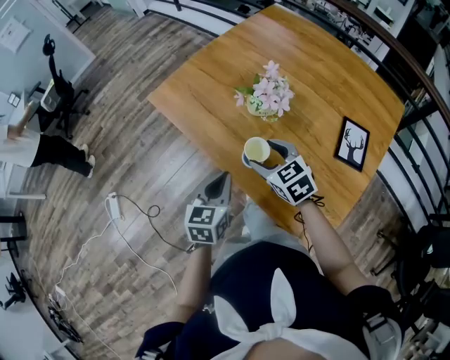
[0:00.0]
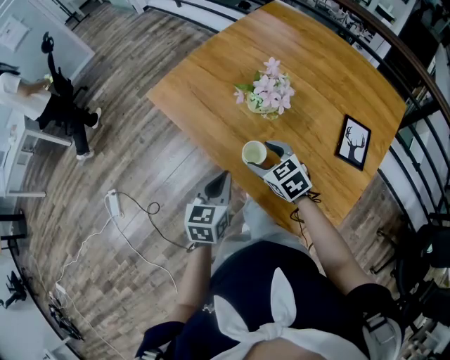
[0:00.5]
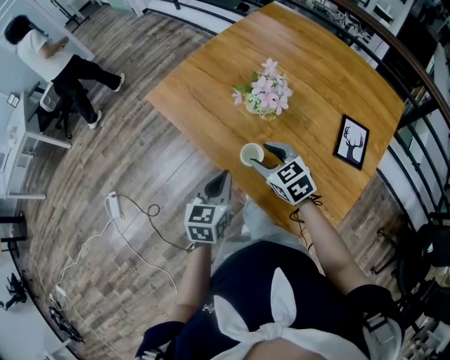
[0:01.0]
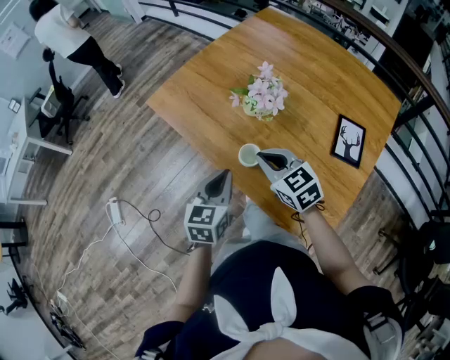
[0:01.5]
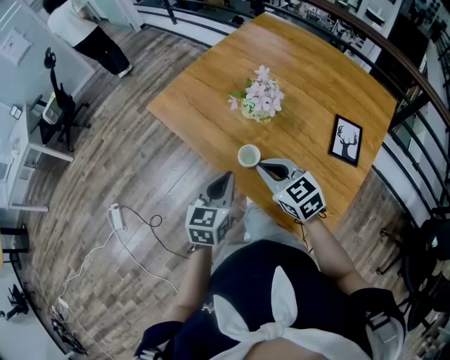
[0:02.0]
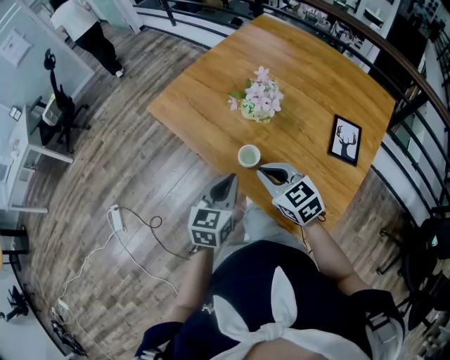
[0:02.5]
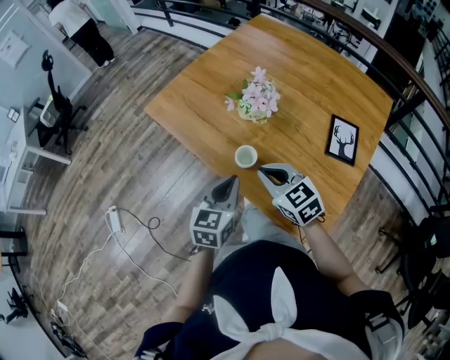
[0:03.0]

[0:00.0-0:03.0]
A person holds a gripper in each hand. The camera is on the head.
0:00.0 to 0:01.5: The right gripper closes.
0:01.5 to 0:03.0: The grippers make only small movements.

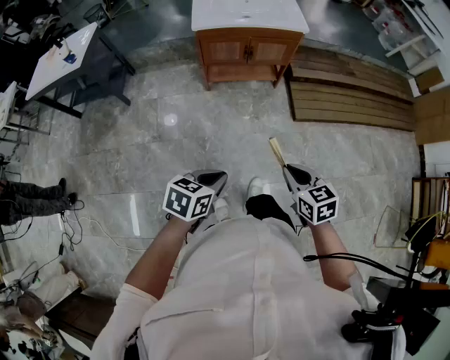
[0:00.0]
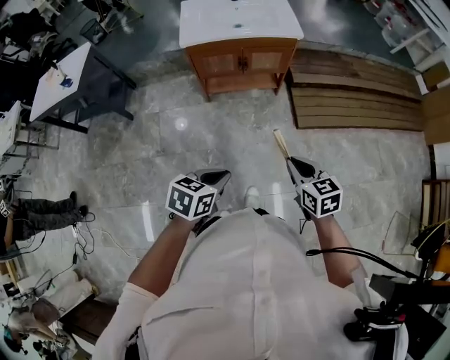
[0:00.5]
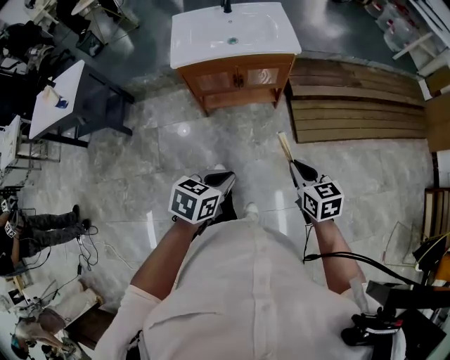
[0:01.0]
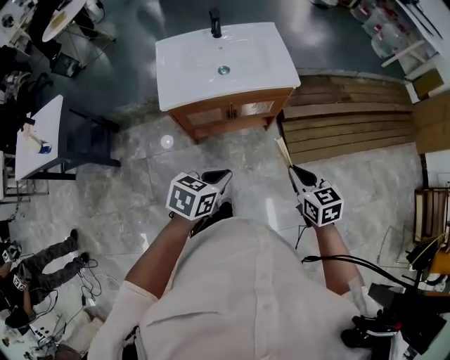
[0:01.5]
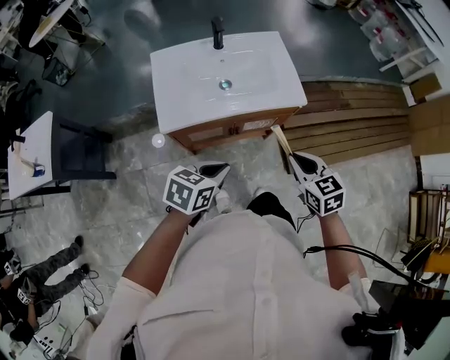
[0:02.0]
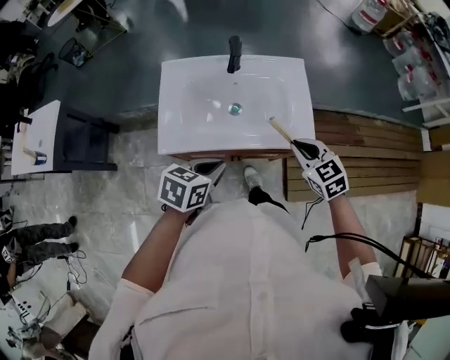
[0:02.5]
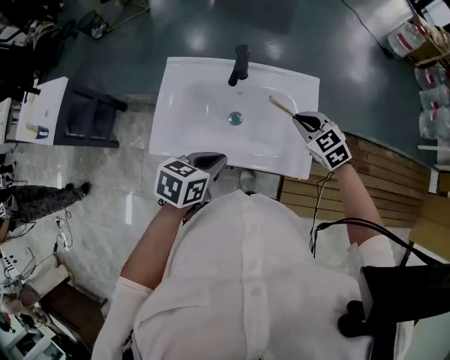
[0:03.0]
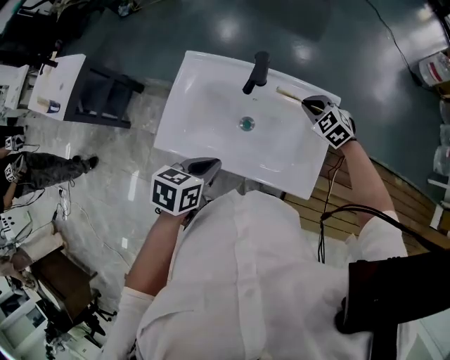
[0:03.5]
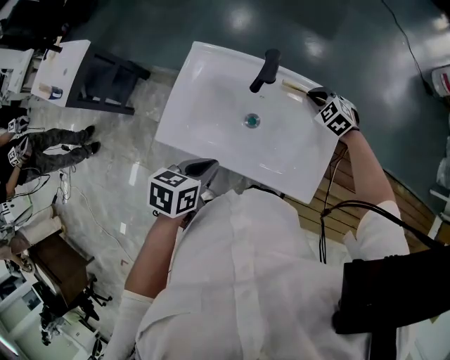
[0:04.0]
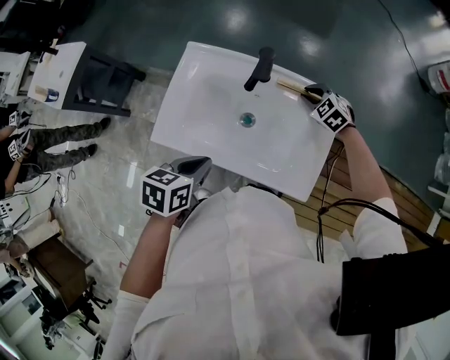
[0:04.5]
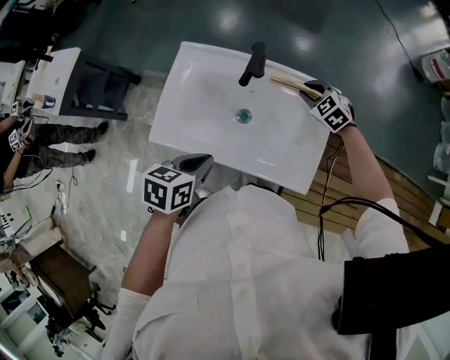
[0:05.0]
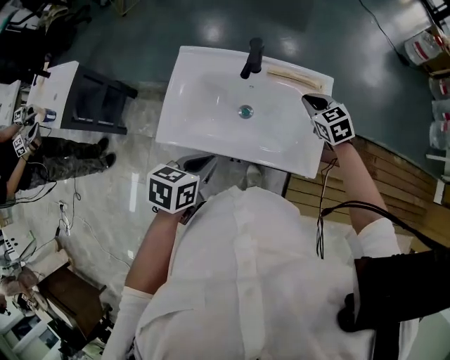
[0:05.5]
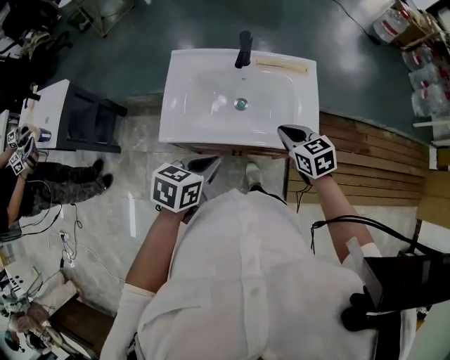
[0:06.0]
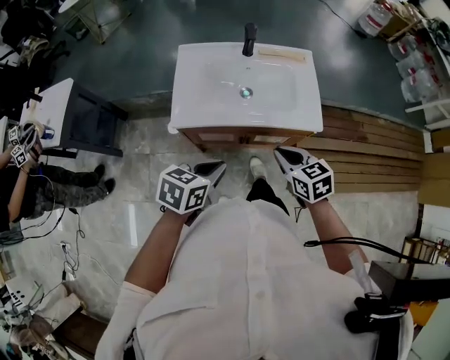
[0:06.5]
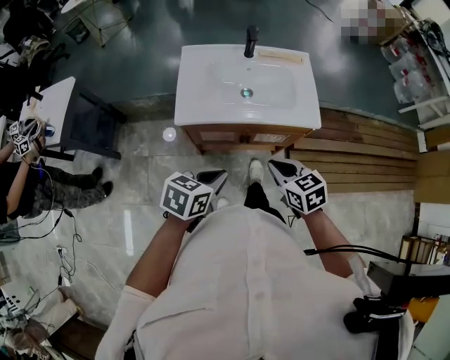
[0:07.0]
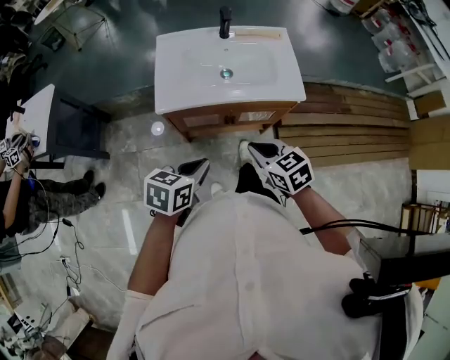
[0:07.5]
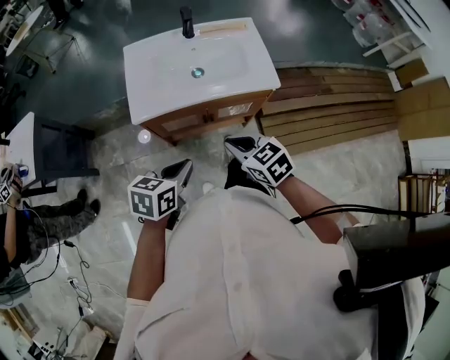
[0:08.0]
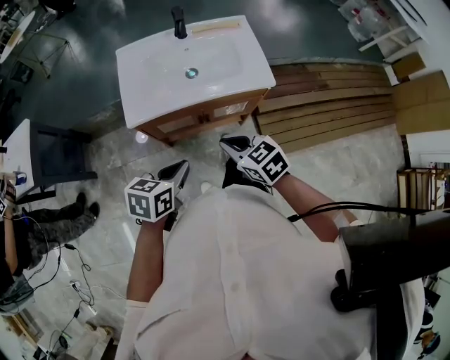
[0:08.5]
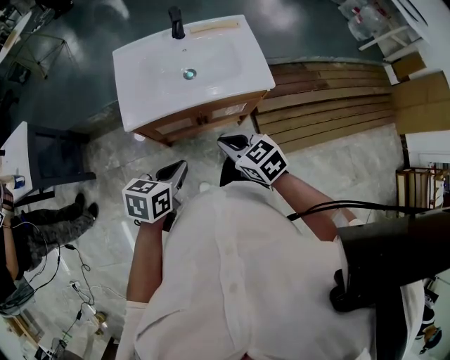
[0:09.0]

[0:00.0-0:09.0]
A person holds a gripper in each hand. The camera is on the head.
0:00.0 to 0:02.0: The pair of grippers is taken forward, roughly 50 cm.
0:02.0 to 0:04.5: The right gripper moves roughly 60 cm, and twists roughly 50 degrees counterclockwise, seen from behind. The left gripper ends up approximately 25 cm from where it was, and turns by roughly 40 degrees.
0:04.5 to 0:07.0: The left gripper heads backward, covering roughly 25 cm, and rotates roughly 30 degrees, while the right gripper is displaced backward by approximately 50 cm, and twists roughly 50 degrees clockwise, seen from behind.
0:07.0 to 0:09.0: The grippers make only small movements.

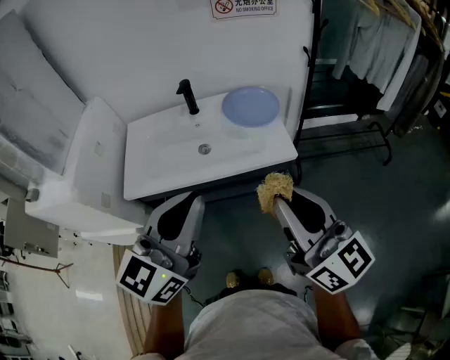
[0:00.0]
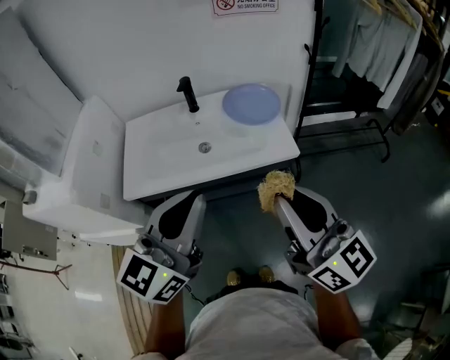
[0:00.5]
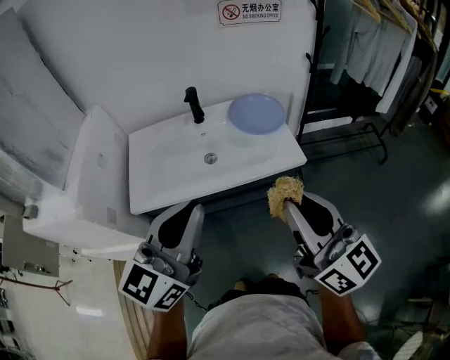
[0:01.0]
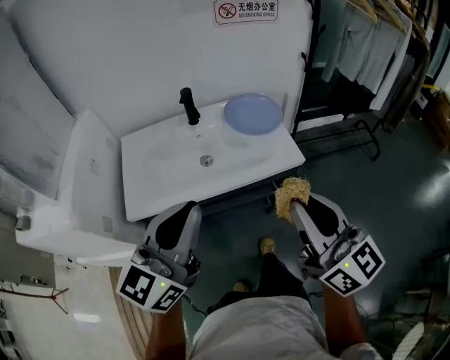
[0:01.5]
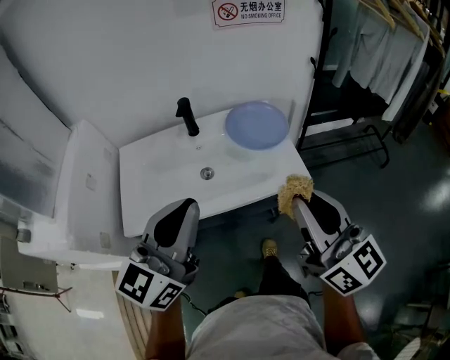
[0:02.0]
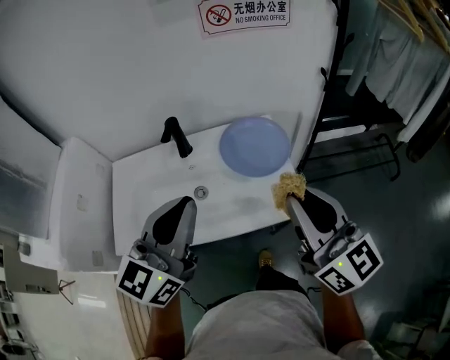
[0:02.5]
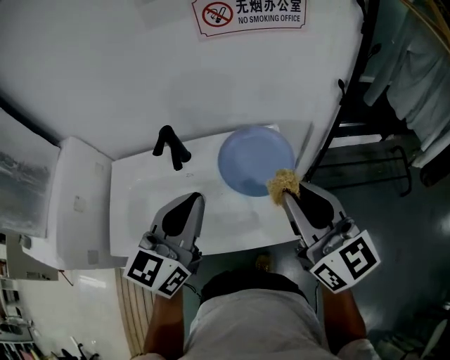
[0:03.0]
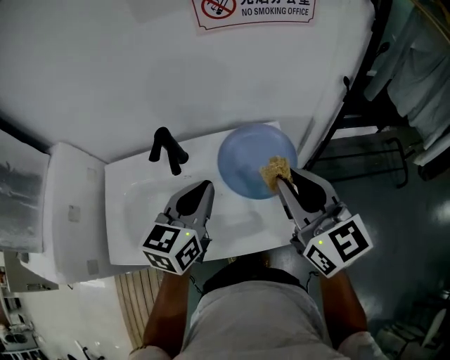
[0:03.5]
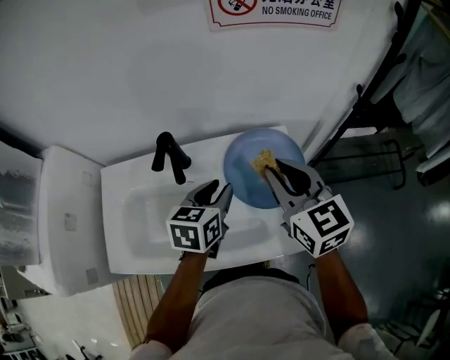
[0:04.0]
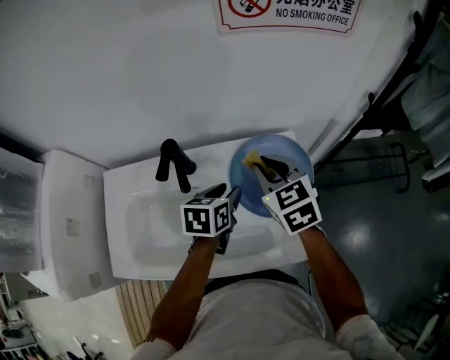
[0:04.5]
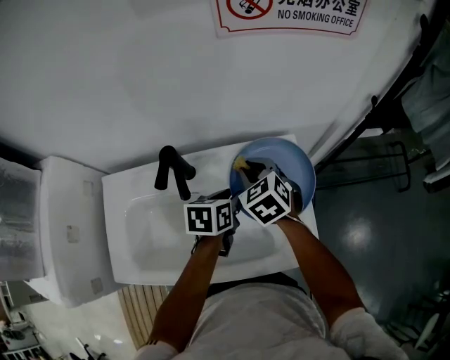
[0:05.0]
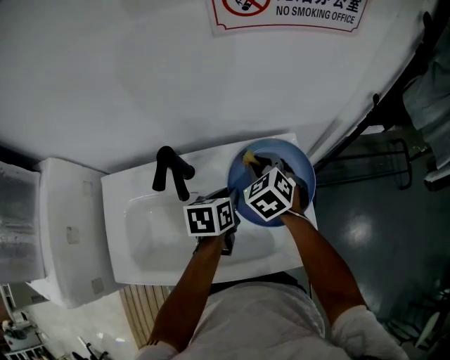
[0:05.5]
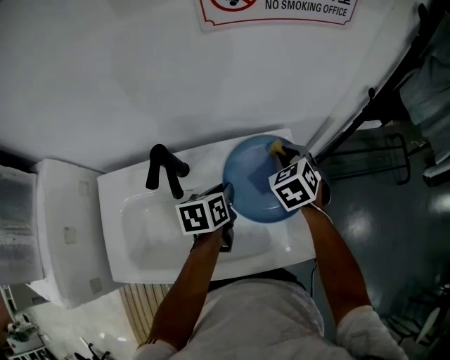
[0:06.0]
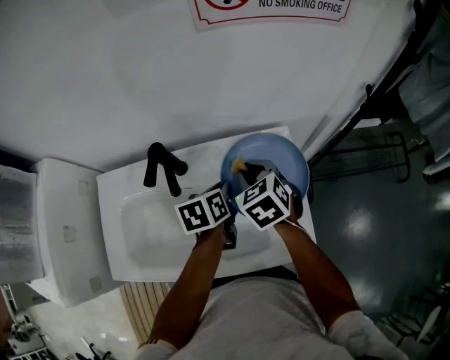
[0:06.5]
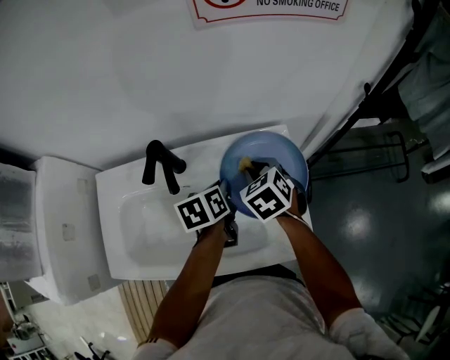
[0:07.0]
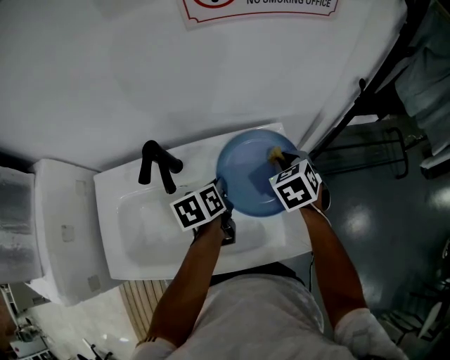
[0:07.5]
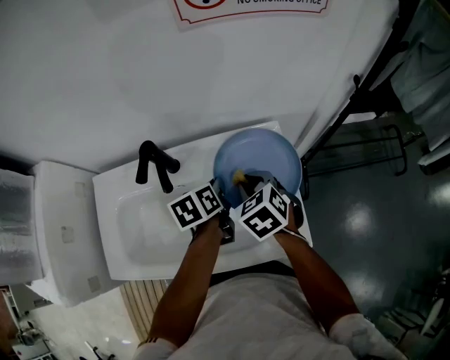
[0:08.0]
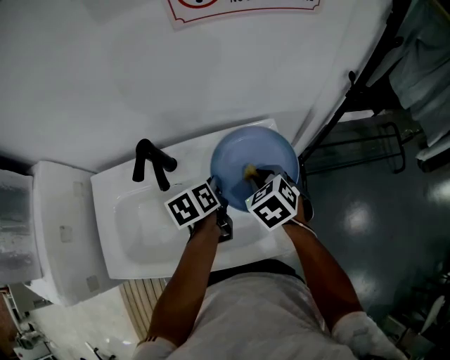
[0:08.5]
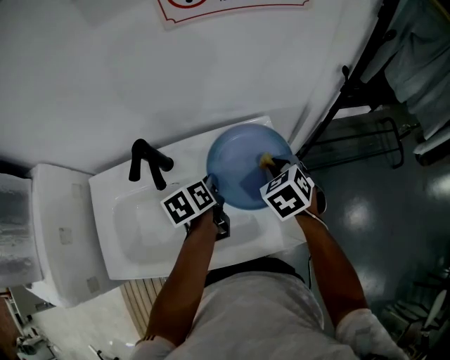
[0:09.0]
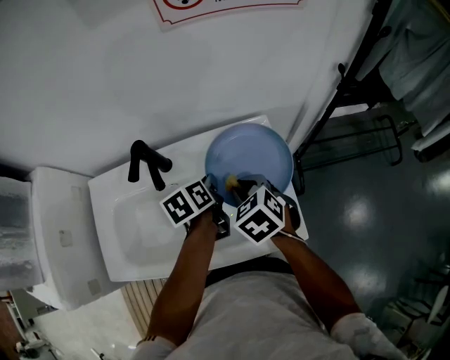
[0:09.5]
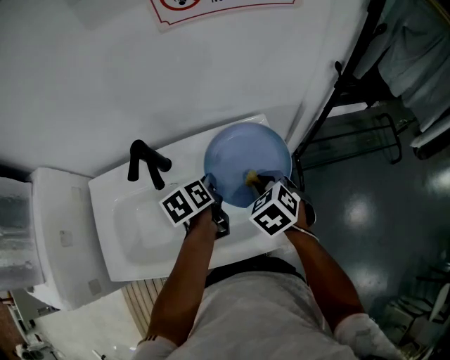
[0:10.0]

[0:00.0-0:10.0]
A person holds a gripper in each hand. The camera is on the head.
0:00.0 to 0:02.0: The right gripper goes about 10 cm forward. Meanwhile the left gripper moves forward and to the left, roughly 15 cm.
0:02.0 to 0:04.0: The right gripper travels forward by roughly 35 cm, and changes its angle by about 30 degrees, while the left gripper travels forward and downward by approximately 35 cm, tips its fingers downward by roughly 40 degrees, and opens.
0:04.0 to 0:06.0: The left gripper is displaced downward by roughly 10 cm, and changes its angle by some 20 degrees. Meanwhile the right gripper shifts some 20 cm downward and forward, and tilts its fingers approximately 30 degrees downward.
0:06.0 to 0:08.0: The right gripper swings left and right, roughly 10 cm each way, with 2 reversals.
0:08.0 to 0:10.0: The right gripper goes left and right, some 10 cm each way, reversing 2 times.

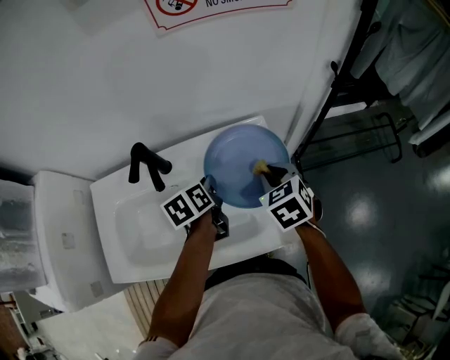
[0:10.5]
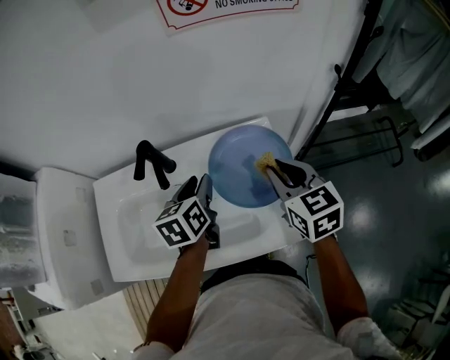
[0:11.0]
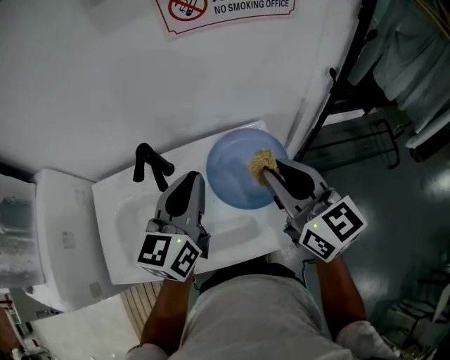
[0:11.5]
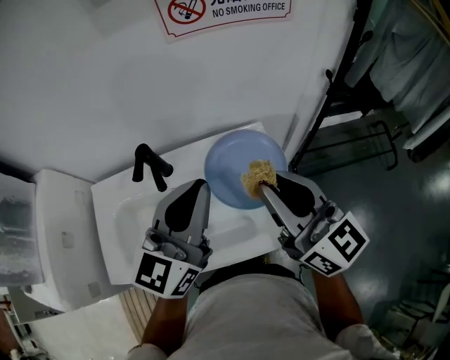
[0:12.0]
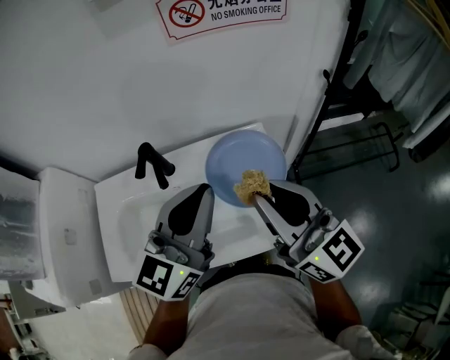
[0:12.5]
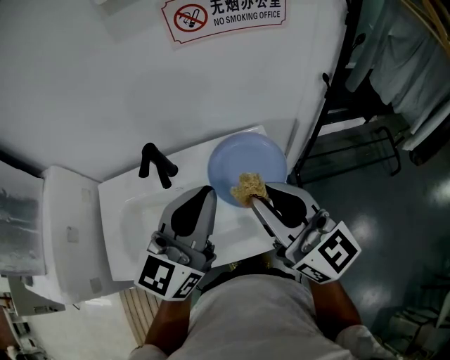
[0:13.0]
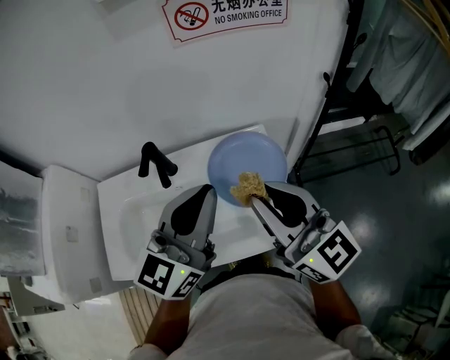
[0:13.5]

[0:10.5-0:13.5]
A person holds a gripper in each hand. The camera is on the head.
0:10.5 to 0:12.0: Both grippers move upward, approximately 25 cm. The left gripper angles its fingers upward, by about 40 degrees, and opens, then closes once more. Meanwhile the right gripper points its fingers about 50 degrees further upward.
0:12.0 to 0:13.5: The grippers make only small movements.

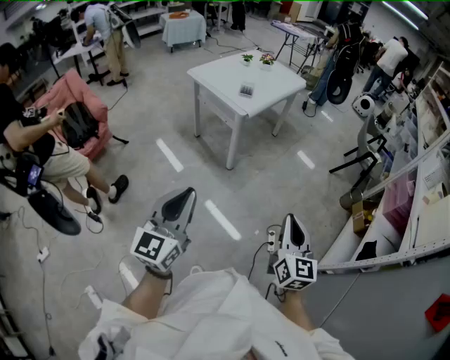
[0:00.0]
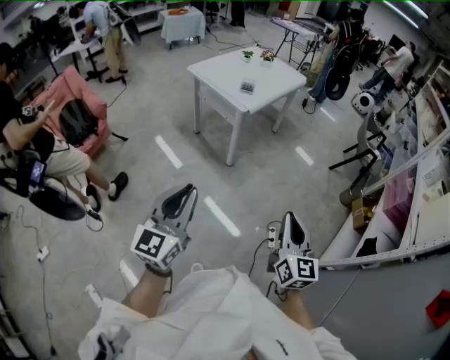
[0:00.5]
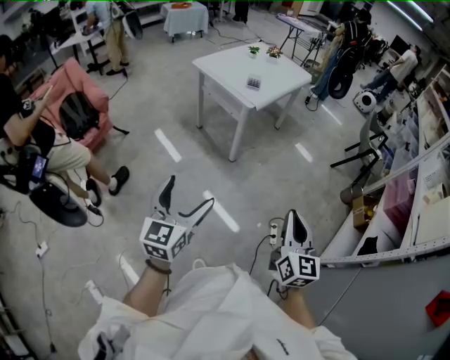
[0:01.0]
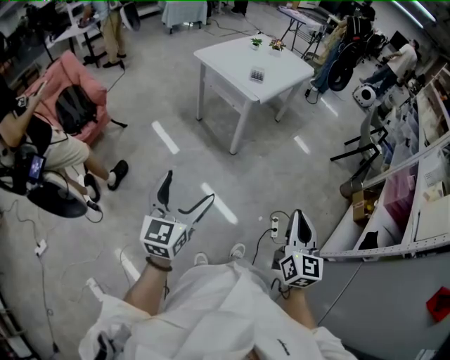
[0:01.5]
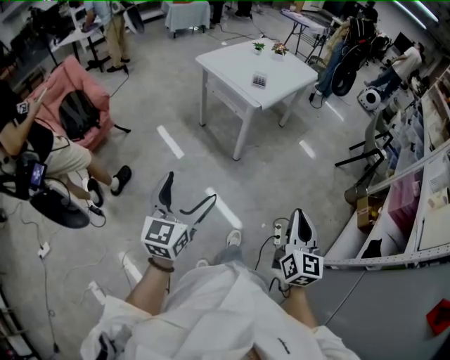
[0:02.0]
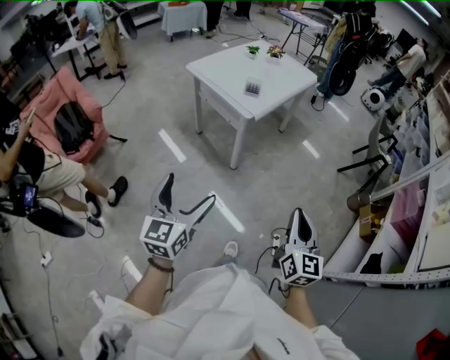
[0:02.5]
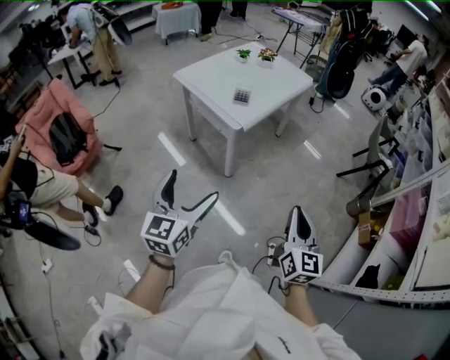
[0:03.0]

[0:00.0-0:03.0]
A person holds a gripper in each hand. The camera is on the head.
0:00.0 to 0:01.5: The left gripper moves to the left and downward, approximately 10 cm, and opens up. The right gripper goes some 5 cm to the left.
0:01.5 to 0:03.0: The right gripper heads forward, covering about 25 cm. The left gripper is displaced forward and to the right by some 25 cm.
